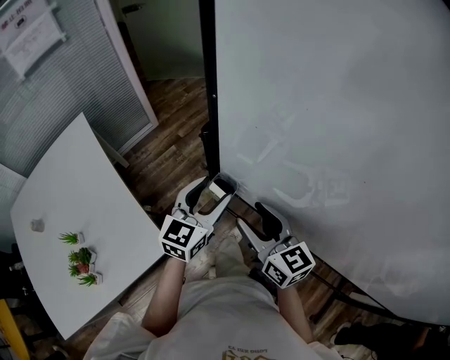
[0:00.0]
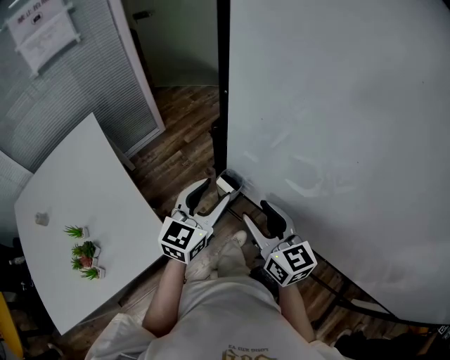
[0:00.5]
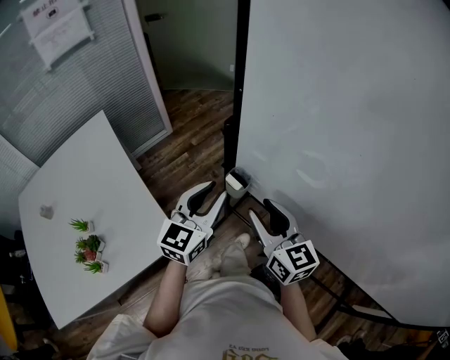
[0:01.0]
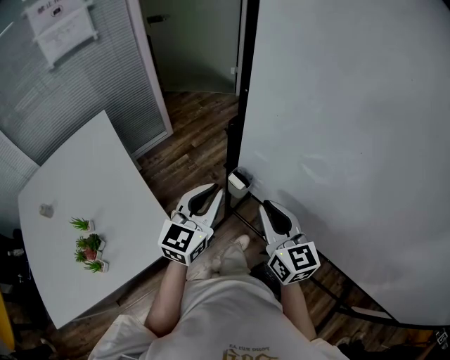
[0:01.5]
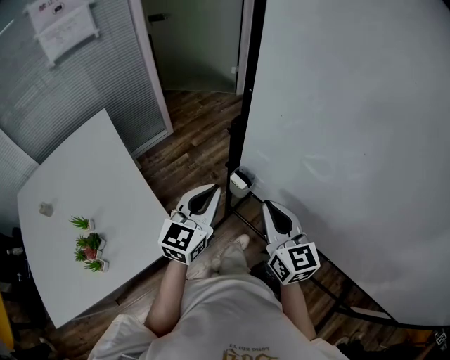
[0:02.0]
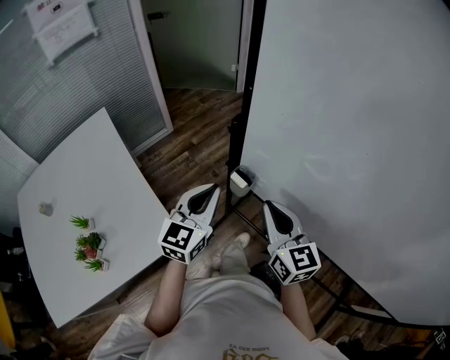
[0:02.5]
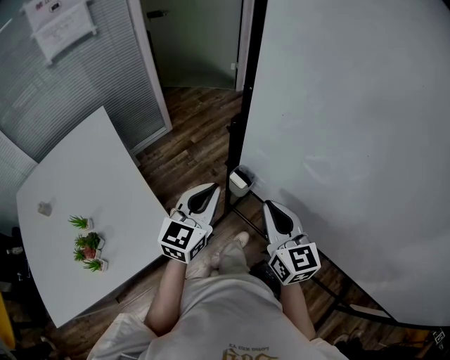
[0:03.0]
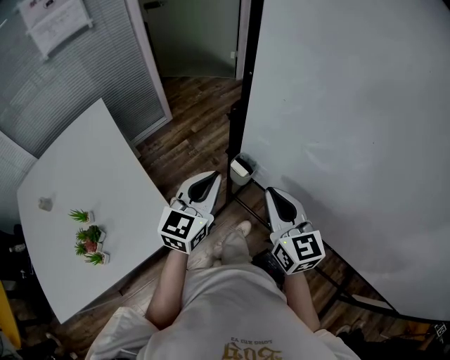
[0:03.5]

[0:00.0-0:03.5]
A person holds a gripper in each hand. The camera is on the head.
0:00.0 to 0:02.0: The right gripper closes up. The left gripper heads backward and to the left, covering approximately 10 cm, and closes its fingers.
0:02.0 to 0:03.5: Both grippers stay about where they are.

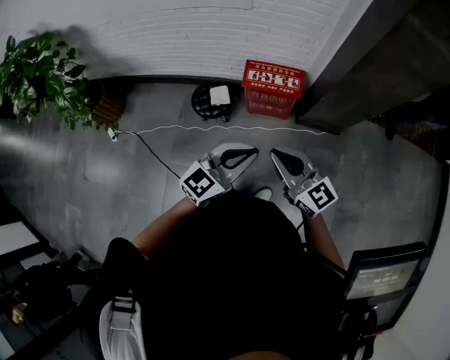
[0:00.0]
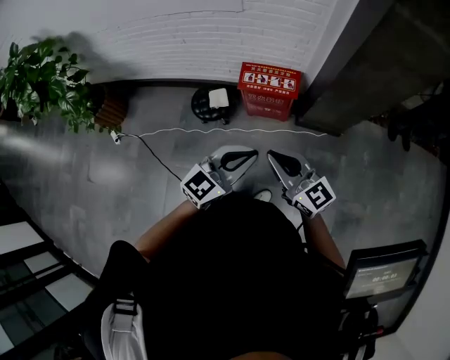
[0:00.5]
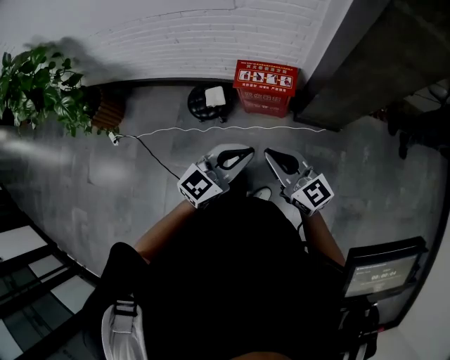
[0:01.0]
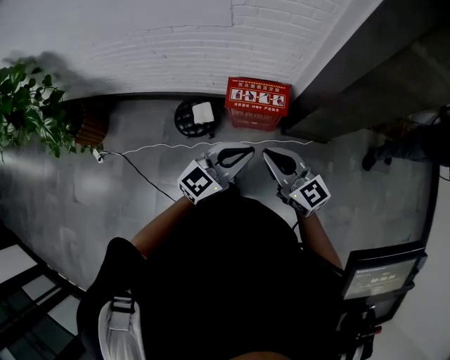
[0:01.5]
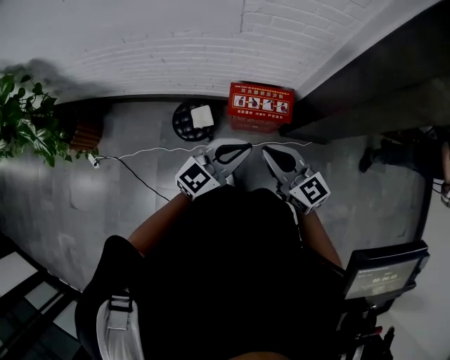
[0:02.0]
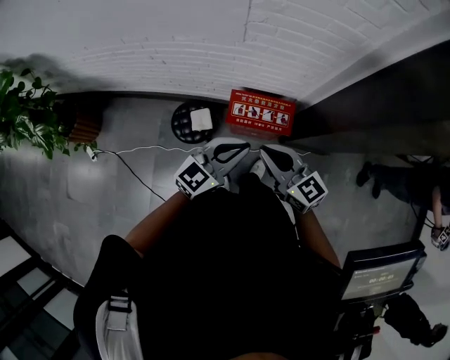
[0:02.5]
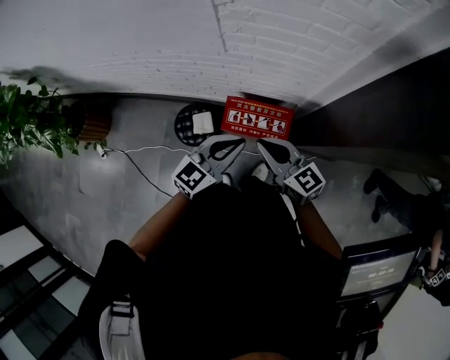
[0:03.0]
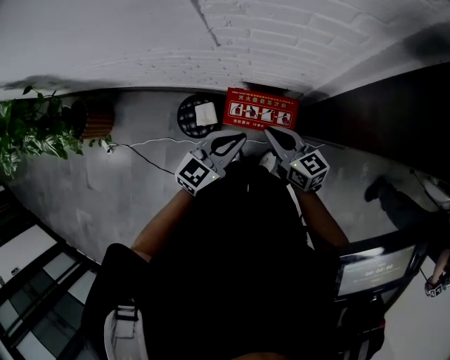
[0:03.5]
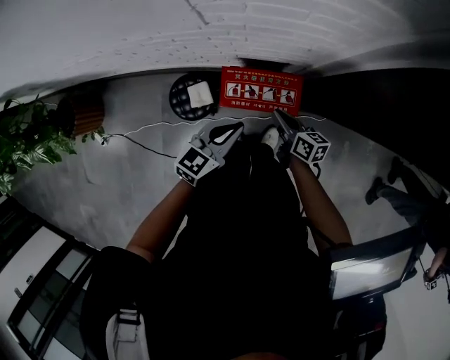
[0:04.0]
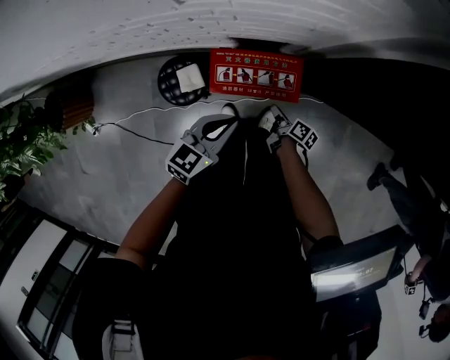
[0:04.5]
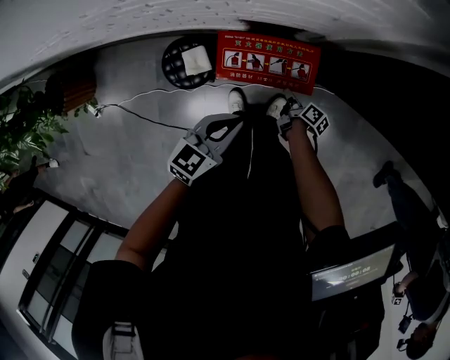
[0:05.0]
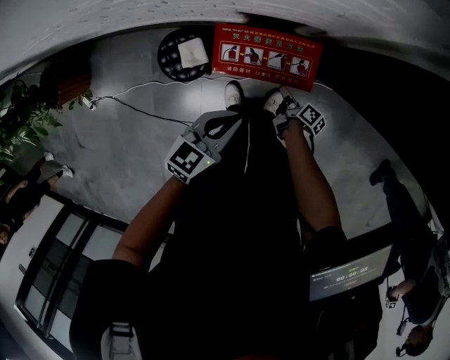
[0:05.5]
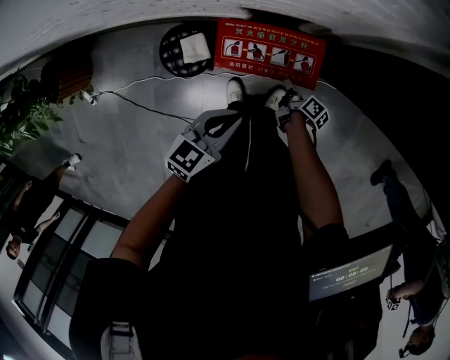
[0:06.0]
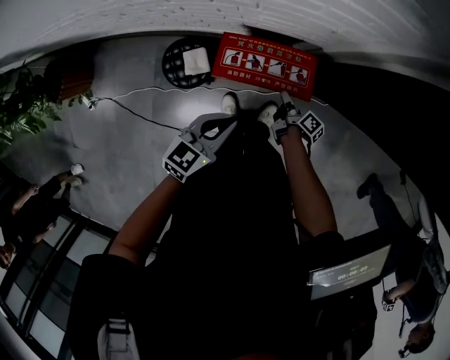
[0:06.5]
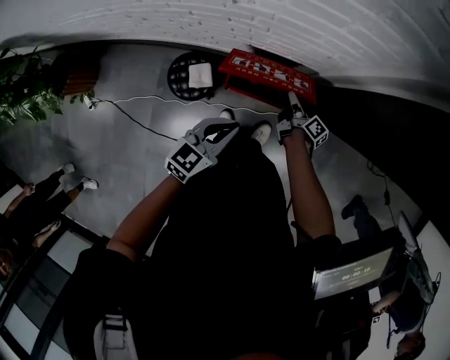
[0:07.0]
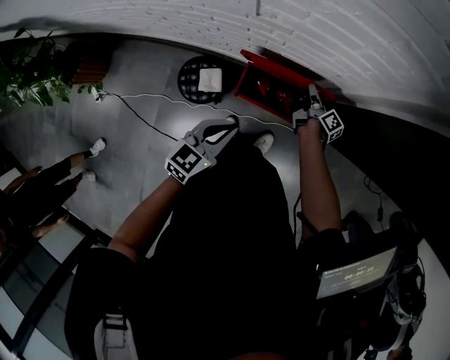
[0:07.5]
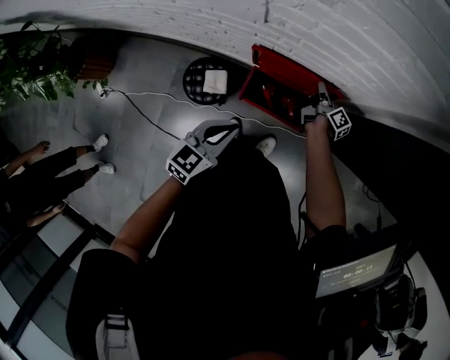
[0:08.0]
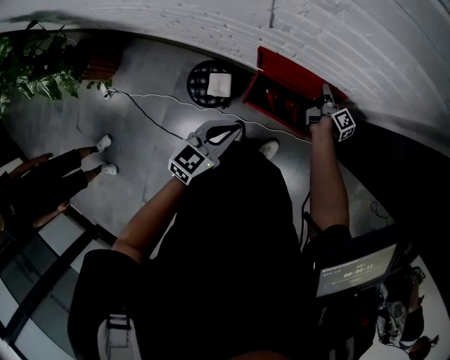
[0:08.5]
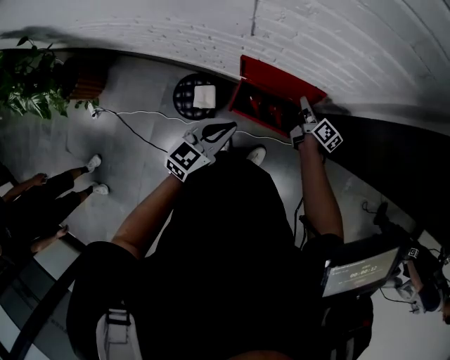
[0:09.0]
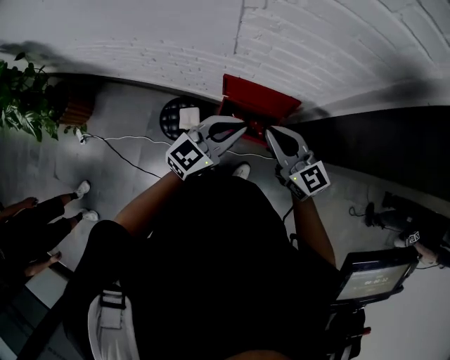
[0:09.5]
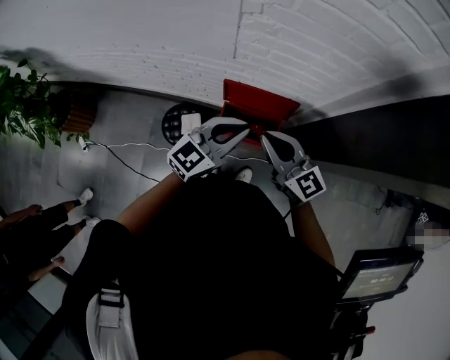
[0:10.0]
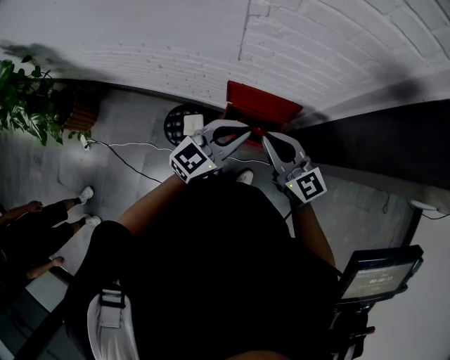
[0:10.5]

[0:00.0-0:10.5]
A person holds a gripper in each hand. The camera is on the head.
0:00.0 to 0:02.0: The grippers both shift forward by some 25 cm.
0:02.0 to 0:04.0: The right gripper heads downward, forward and to the right, covering about 40 cm, and twists roughly 40 degrees clockwise, seen from behind. The left gripper travels forward and downward by approximately 25 cm, and rotates approximately 20 degrees.
0:04.0 to 0:06.5: The right gripper shifts about 25 cm downward, and rolls clockwise, seen from behind, by some 40 degrees. The left gripper goes roughly 10 cm downward and backward.
0:06.5 to 0:08.5: The right gripper is displaced forward and upward by about 25 cm. Meanwhile the left gripper heads upward and to the left, covering about 10 cm.
0:08.5 to 0:10.5: The right gripper moves upward and backward, approximately 50 cm, and rotates around the line of its fingers by roughly 70 degrees, counterclockwise from behind. The left gripper moves upward, approximately 20 cm, and changes its angle by about 30 degrees.

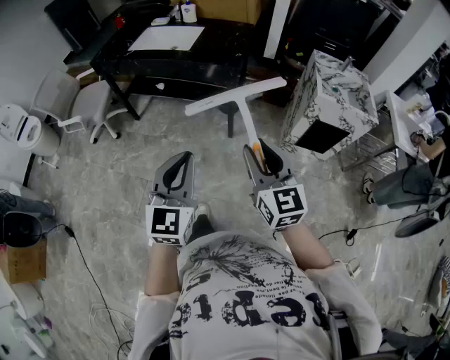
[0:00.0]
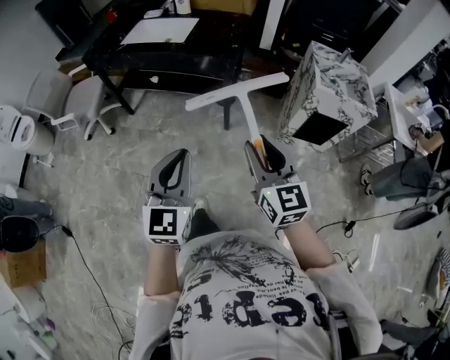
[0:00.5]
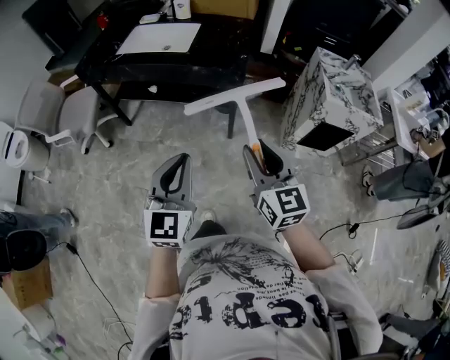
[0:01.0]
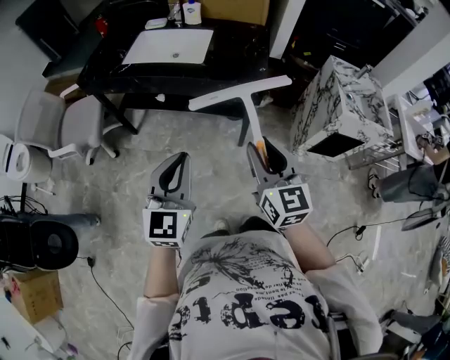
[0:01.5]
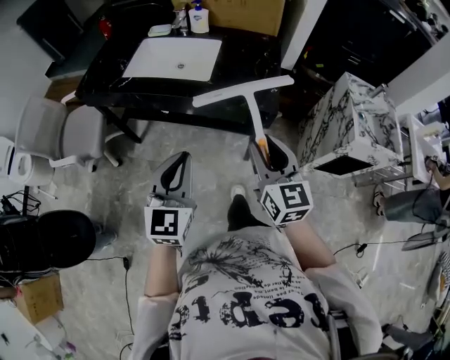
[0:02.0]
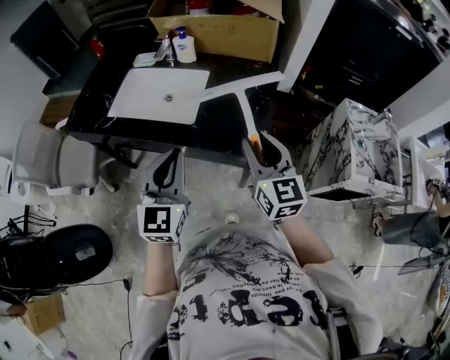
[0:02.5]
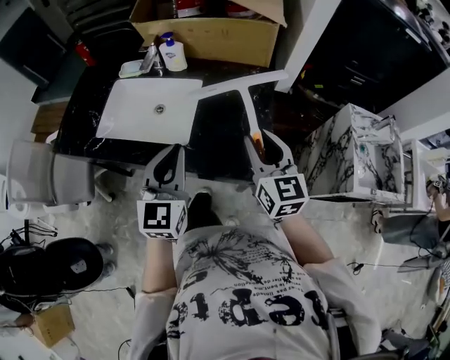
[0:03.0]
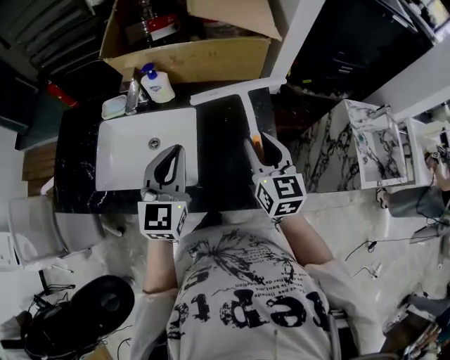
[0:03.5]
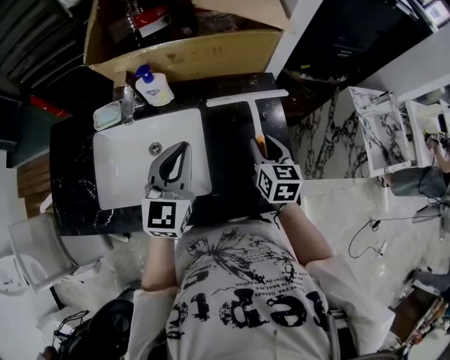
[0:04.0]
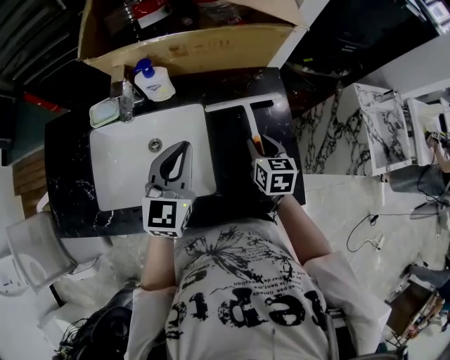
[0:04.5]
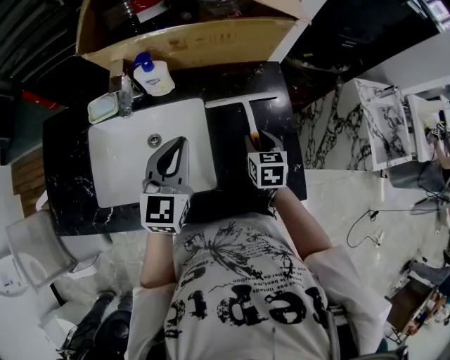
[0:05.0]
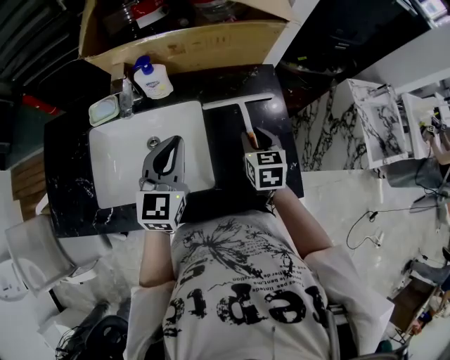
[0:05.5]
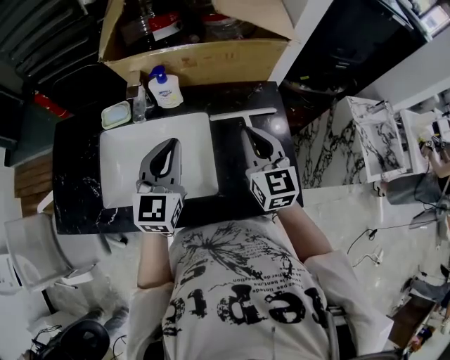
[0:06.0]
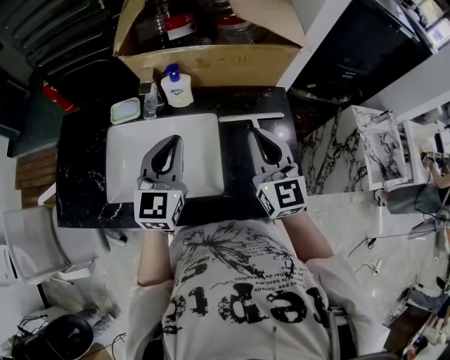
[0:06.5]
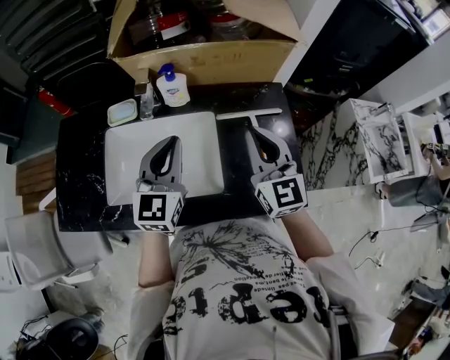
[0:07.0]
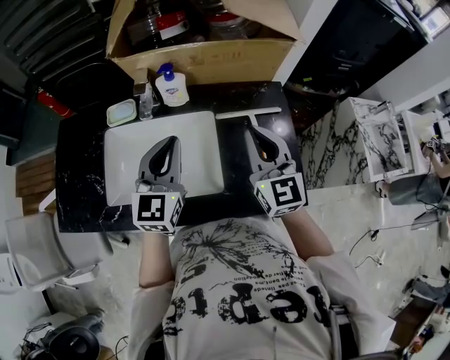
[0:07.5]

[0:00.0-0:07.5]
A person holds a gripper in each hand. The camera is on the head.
0:00.0 to 0:02.0: The right gripper shifts about 35 cm forward. The left gripper goes roughly 40 cm forward and to the left.
0:02.0 to 0:04.0: The two grippers travel together, forward, some 50 cm. The right gripper swivels about 30 degrees. Meanwhile the left gripper rotates approximately 20 degrees.
0:05.5 to 0:07.5: The right gripper goes some 20 cm upward, angles its fingers upward, by roughly 40 degrees, and closes. Meanwhile the left gripper ends up approximately 5 cm from where it was.

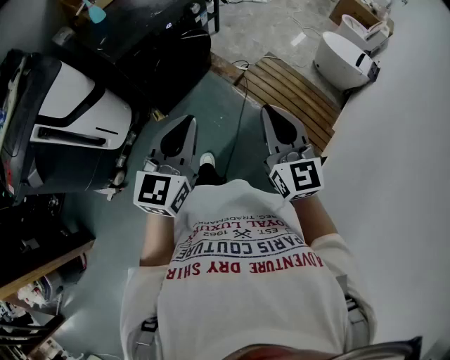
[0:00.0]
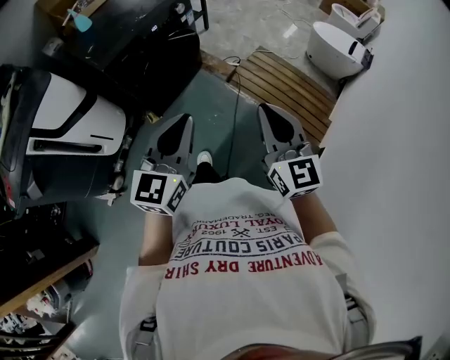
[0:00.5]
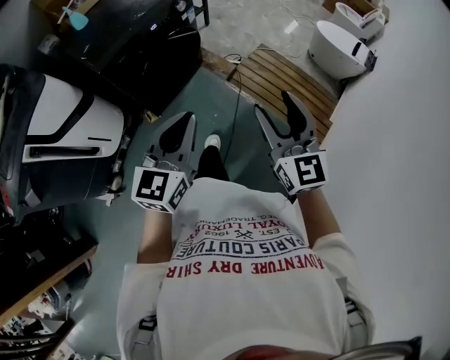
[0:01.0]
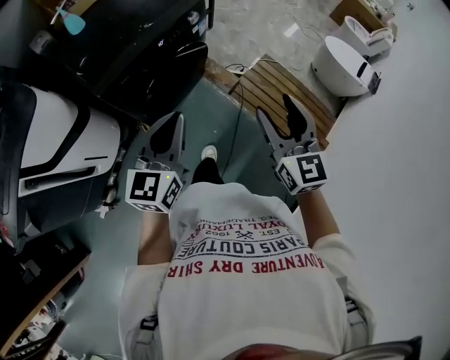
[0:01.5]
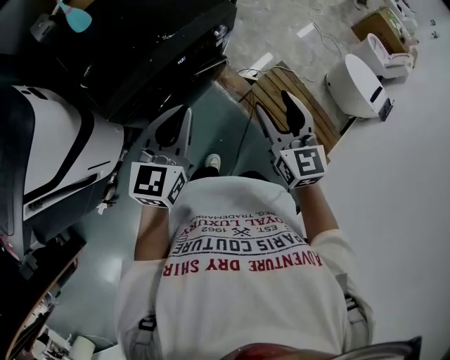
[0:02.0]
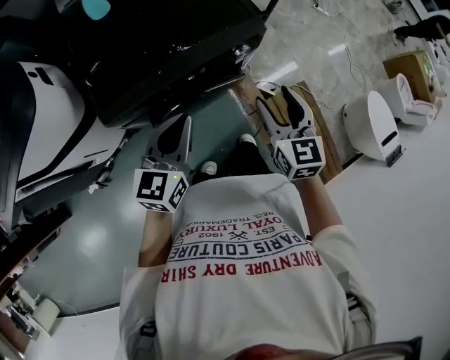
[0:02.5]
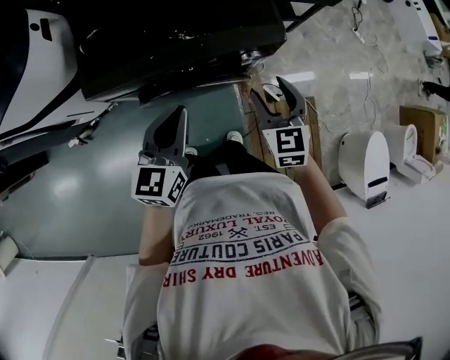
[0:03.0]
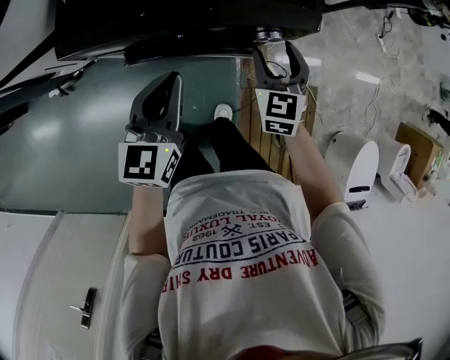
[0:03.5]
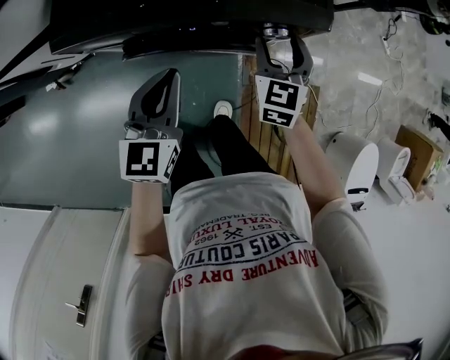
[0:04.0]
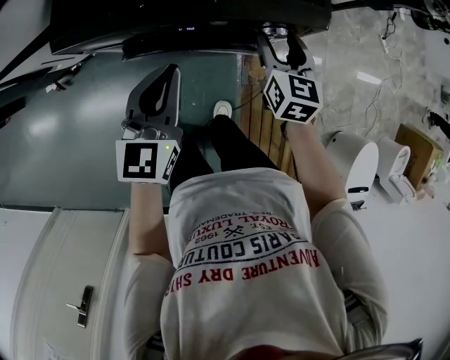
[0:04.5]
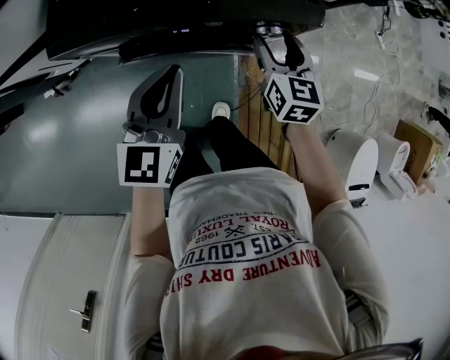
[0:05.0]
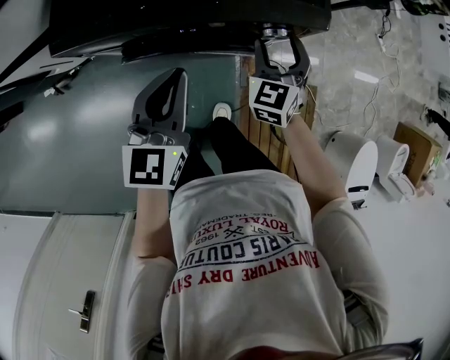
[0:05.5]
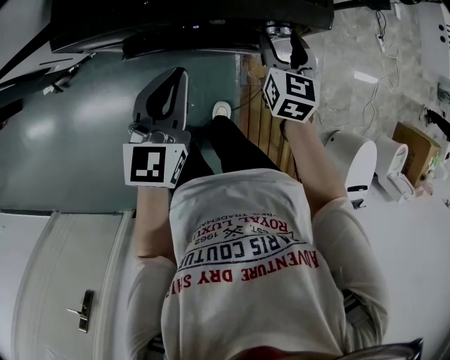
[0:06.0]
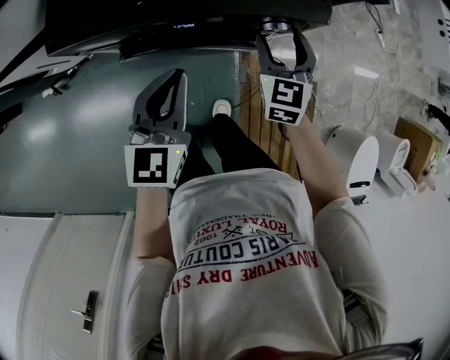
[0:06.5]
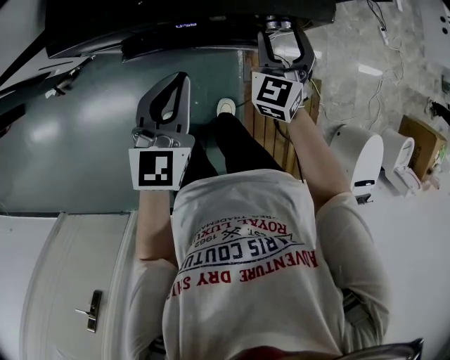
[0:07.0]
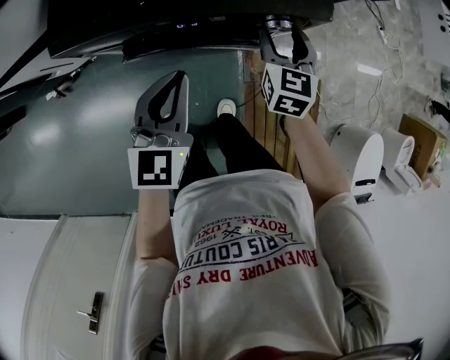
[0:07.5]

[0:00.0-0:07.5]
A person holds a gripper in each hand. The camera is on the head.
0:00.0 to 0:02.0: The grippers both shift forward by approximately 40 cm. The right gripper opens its fingers.
0:02.0 to 0:04.0: The left gripper travels downward by approximately 20 cm, and turns by some 50 degrees; the right gripper shifts by some 40 cm, and changes its angle by about 30 degrees.
0:05.5 to 0:07.5: The right gripper turns by roughly 20 degrees.
